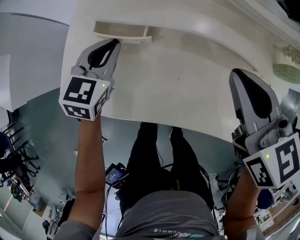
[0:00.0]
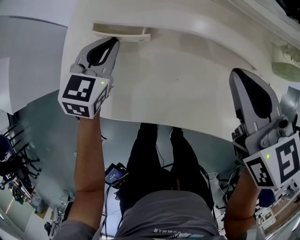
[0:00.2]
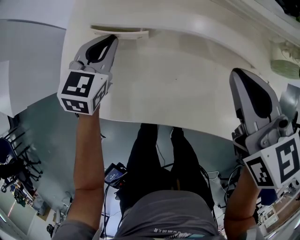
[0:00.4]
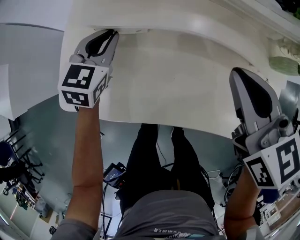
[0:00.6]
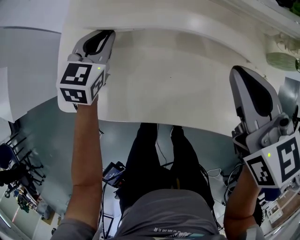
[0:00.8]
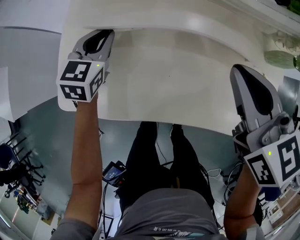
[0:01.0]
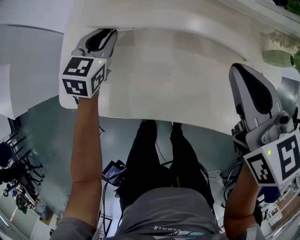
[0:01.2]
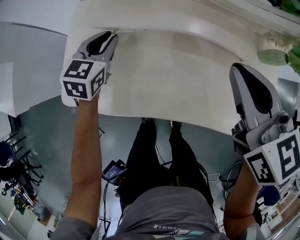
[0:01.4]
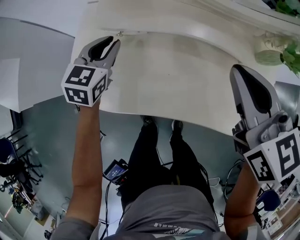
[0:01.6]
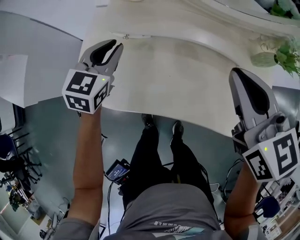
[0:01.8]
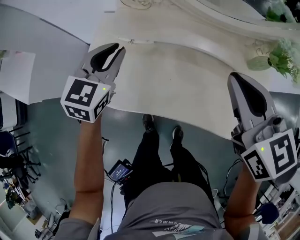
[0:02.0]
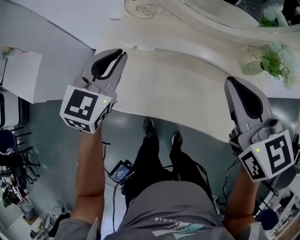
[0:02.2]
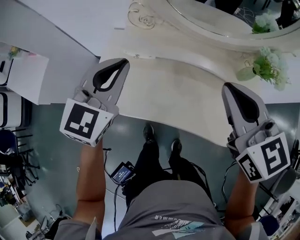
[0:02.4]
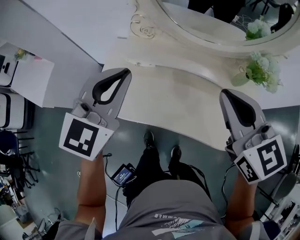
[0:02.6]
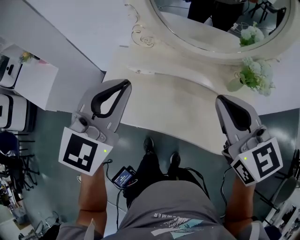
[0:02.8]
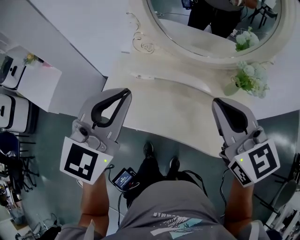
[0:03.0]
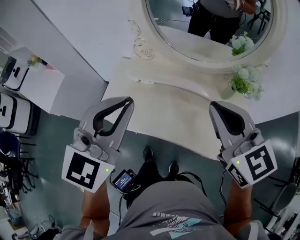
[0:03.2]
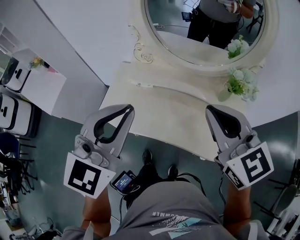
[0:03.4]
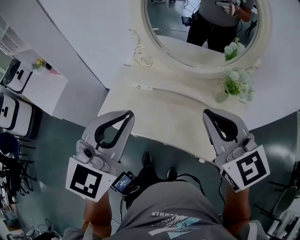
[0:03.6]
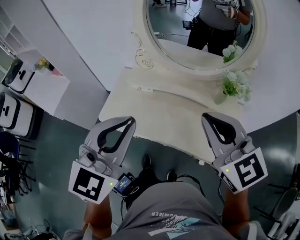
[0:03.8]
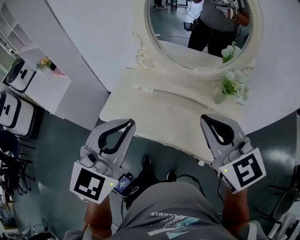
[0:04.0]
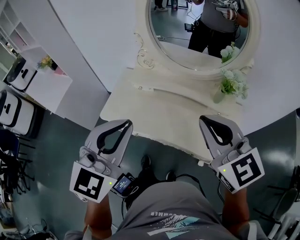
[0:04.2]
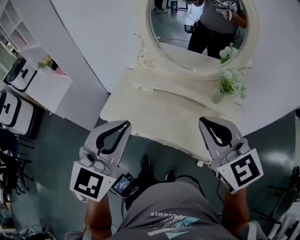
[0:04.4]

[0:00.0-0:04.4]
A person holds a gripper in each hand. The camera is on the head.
0.0 to 1.4 s: The right gripper shifts by approximately 5 cm.
1.4 to 3.0 s: The right gripper is displaced upward and backward by approximately 25 cm, while the left gripper heads upward and backward, covering approximately 50 cm, and changes its angle by about 30 degrees.
3.0 to 4.4 s: The grippers both shift backward by about 15 cm.

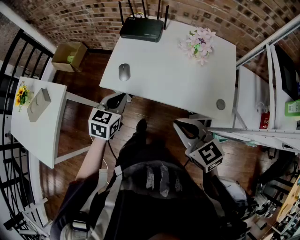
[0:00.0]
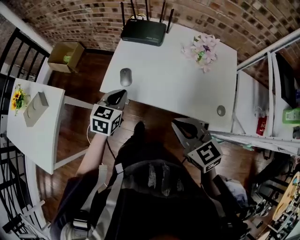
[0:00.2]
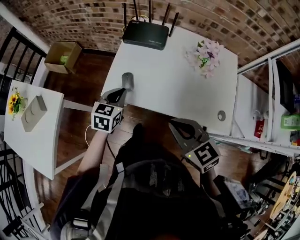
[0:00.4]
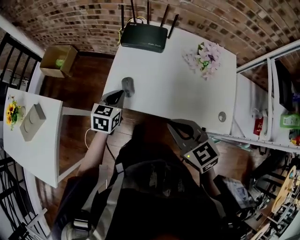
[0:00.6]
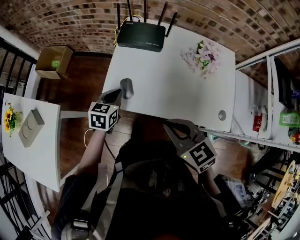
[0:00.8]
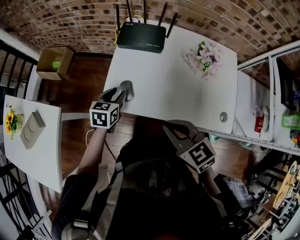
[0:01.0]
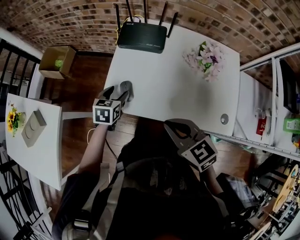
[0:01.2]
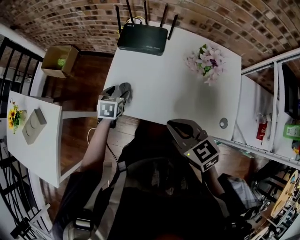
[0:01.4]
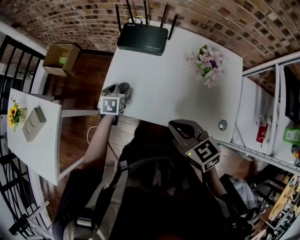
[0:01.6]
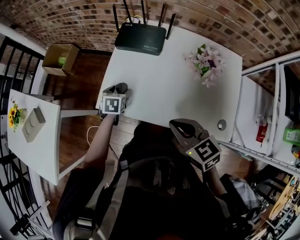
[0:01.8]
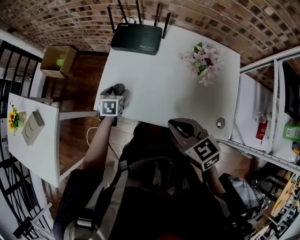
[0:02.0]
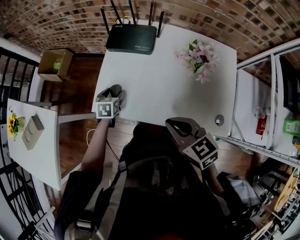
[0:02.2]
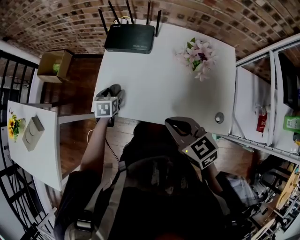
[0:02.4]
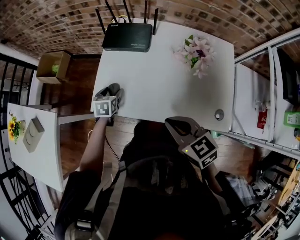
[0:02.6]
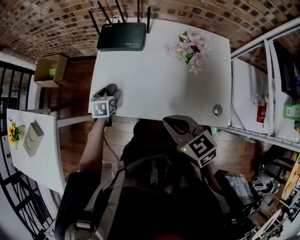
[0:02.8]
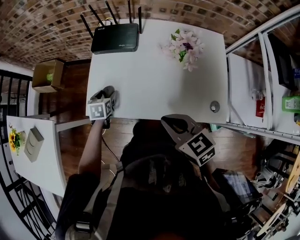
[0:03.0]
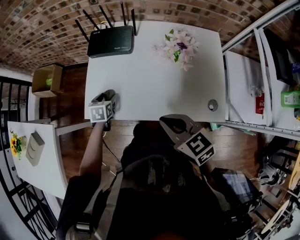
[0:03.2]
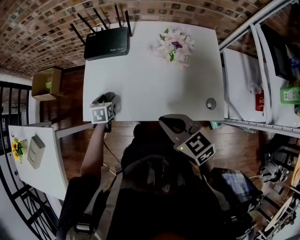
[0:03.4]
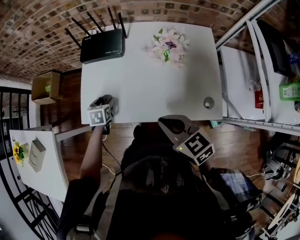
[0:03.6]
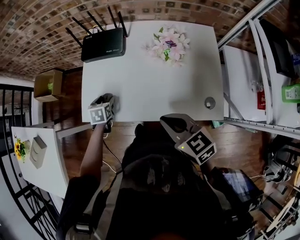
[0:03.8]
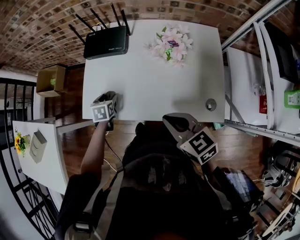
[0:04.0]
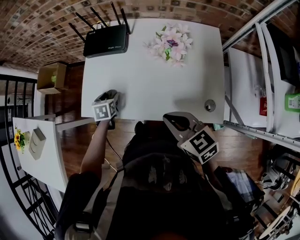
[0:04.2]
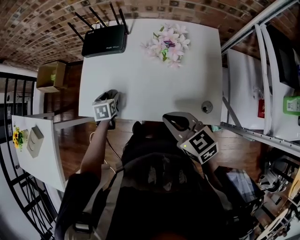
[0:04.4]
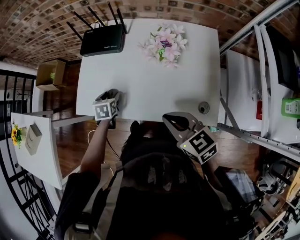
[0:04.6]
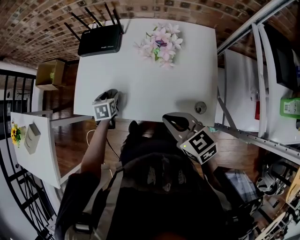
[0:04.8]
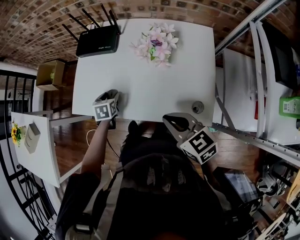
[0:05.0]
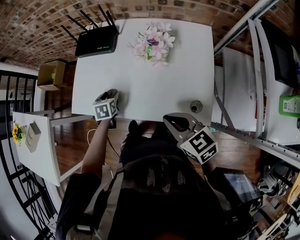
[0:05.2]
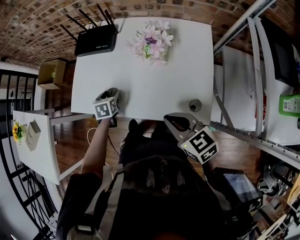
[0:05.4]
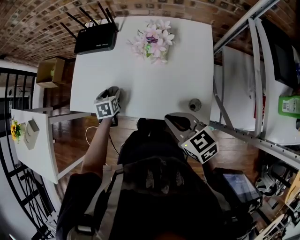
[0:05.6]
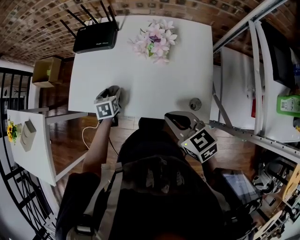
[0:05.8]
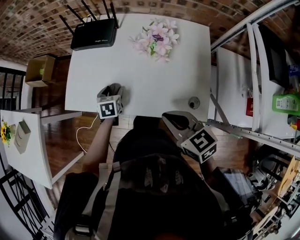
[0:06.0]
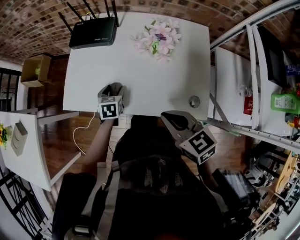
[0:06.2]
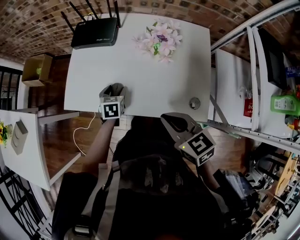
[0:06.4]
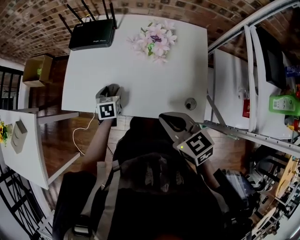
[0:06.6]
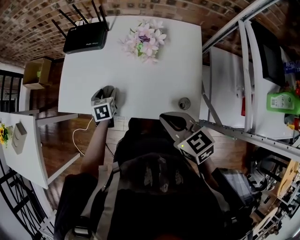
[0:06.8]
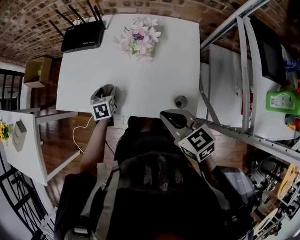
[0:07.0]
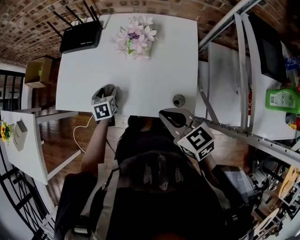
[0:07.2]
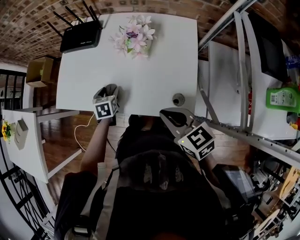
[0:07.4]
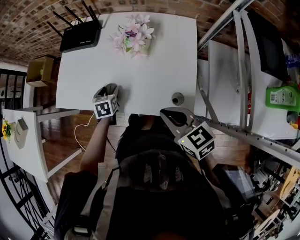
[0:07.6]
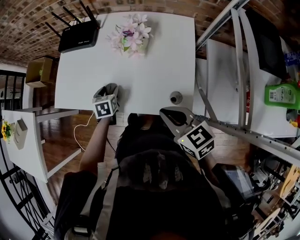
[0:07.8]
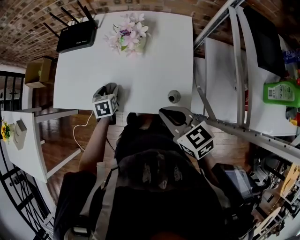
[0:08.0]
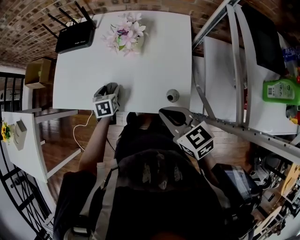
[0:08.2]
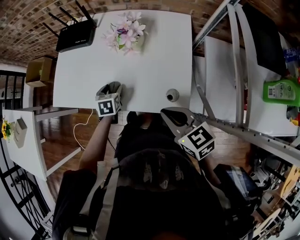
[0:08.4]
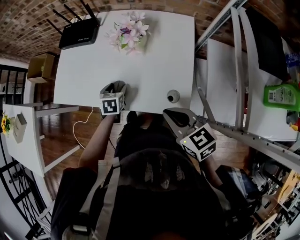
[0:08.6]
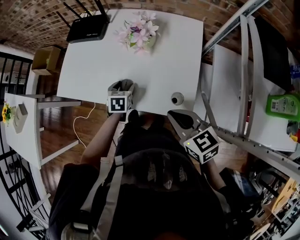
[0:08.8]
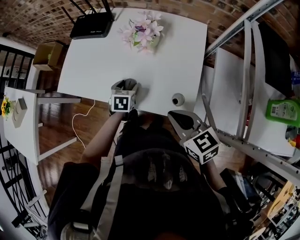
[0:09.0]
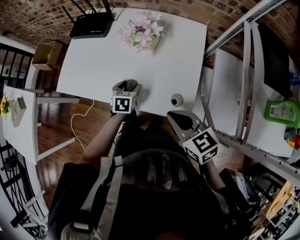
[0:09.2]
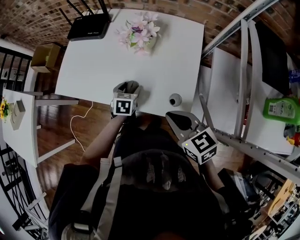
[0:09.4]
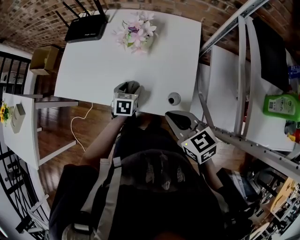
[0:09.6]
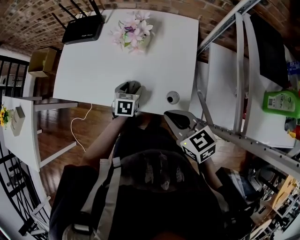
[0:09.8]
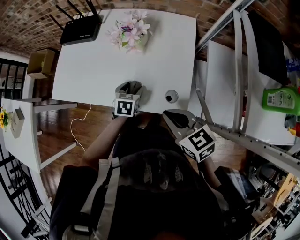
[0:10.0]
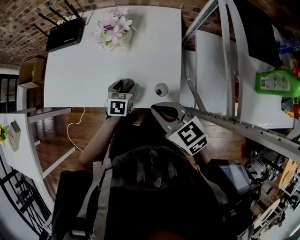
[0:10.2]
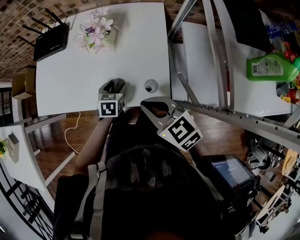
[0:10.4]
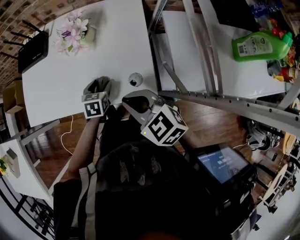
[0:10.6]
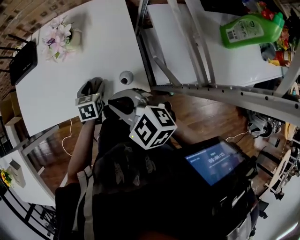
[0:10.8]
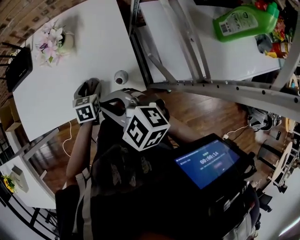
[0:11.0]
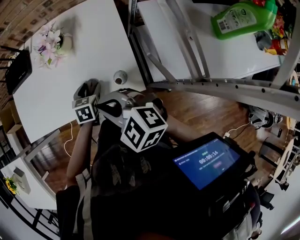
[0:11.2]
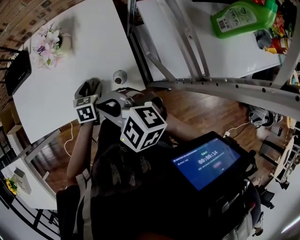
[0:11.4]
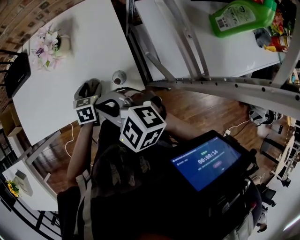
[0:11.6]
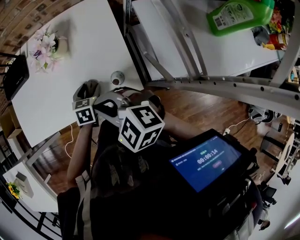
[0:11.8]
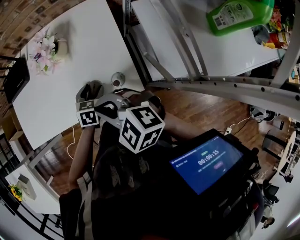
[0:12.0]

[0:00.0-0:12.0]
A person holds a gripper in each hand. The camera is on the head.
0.0 to 1.6 s: The left gripper shifts some 25 cm forward and downward, turns by about 20 degrees, and opens its fingers; the right gripper goes about 15 cm forward.
1.6 to 3.0 s: The grippers make only small movements.
3.0 to 4.4 s: Both grippers move to the right, roughly 10 cm.
4.4 to 6.0 s: The left gripper is displaced to the right by some 5 cm.
6.0 to 7.6 s: The two grippers go approximately 10 cm to the right.
7.6 to 9.0 s: The left gripper goes approximately 5 cm to the right.
9.0 to 10.4 s: The left gripper travels to the right by roughly 10 cm.

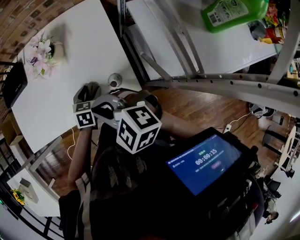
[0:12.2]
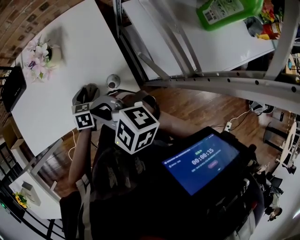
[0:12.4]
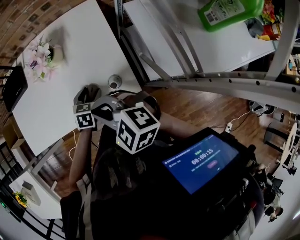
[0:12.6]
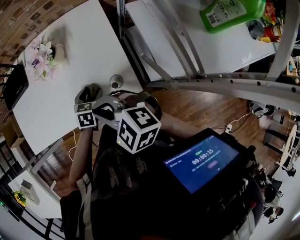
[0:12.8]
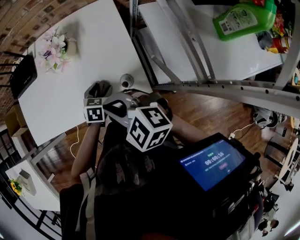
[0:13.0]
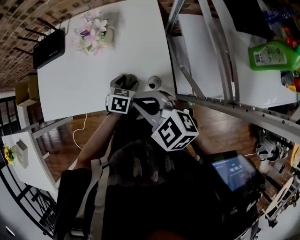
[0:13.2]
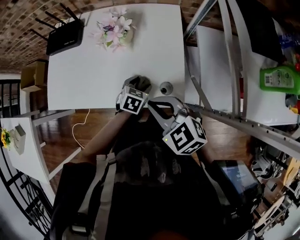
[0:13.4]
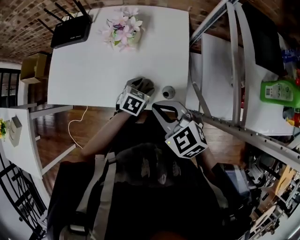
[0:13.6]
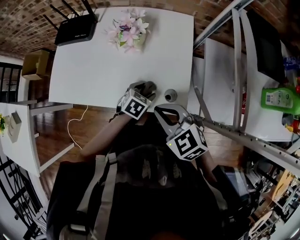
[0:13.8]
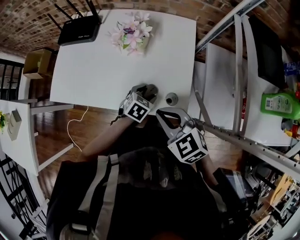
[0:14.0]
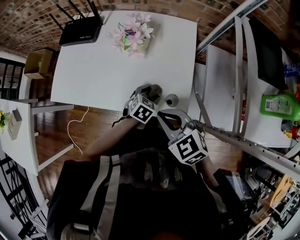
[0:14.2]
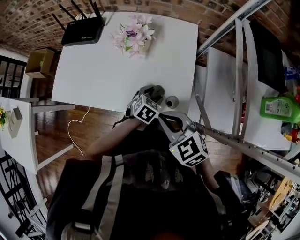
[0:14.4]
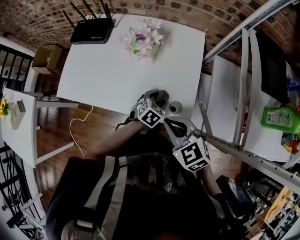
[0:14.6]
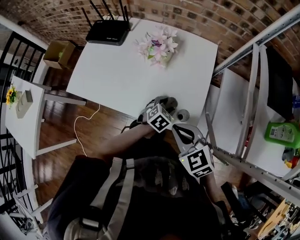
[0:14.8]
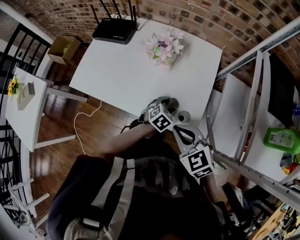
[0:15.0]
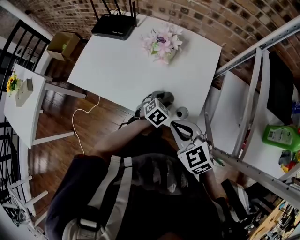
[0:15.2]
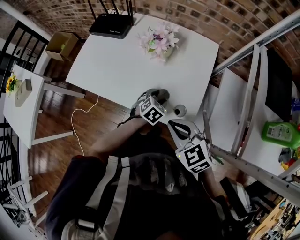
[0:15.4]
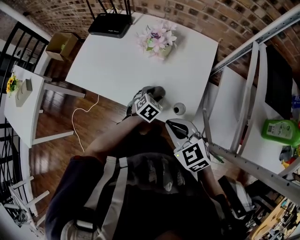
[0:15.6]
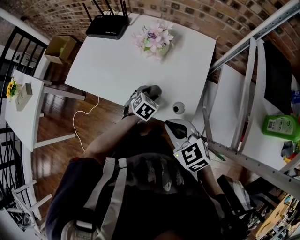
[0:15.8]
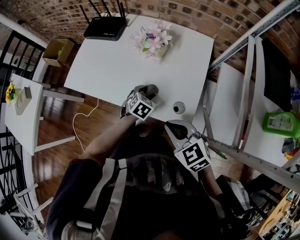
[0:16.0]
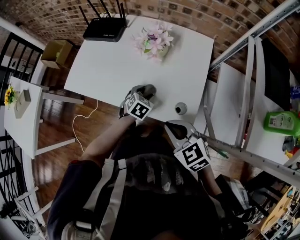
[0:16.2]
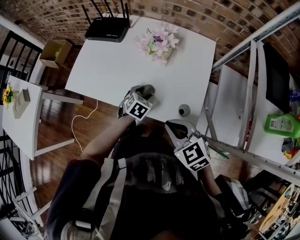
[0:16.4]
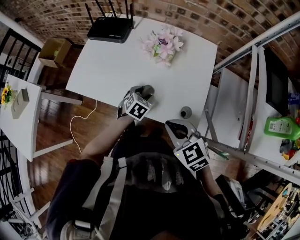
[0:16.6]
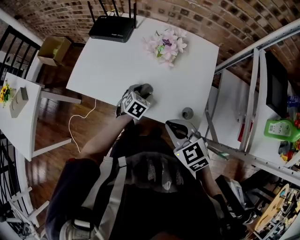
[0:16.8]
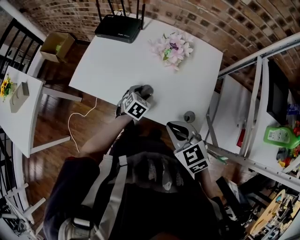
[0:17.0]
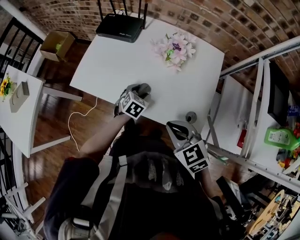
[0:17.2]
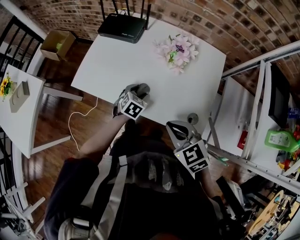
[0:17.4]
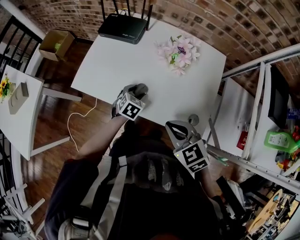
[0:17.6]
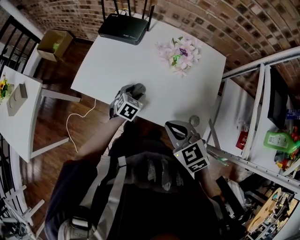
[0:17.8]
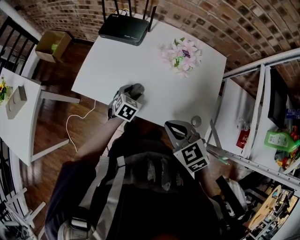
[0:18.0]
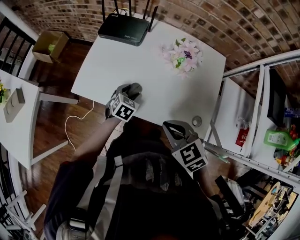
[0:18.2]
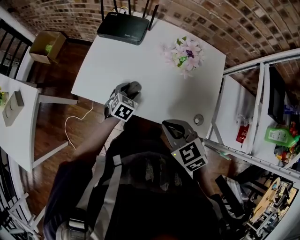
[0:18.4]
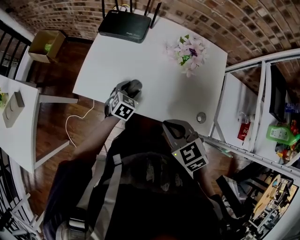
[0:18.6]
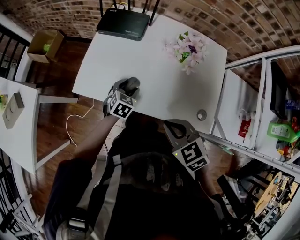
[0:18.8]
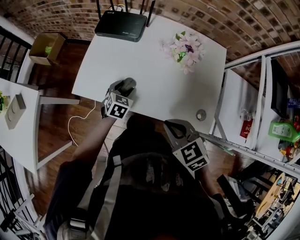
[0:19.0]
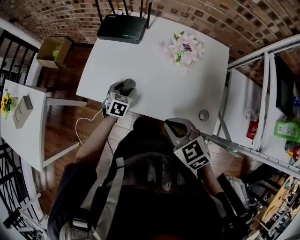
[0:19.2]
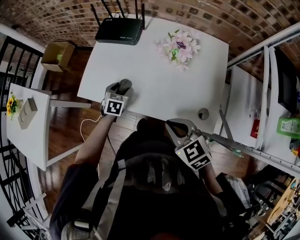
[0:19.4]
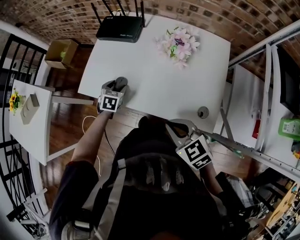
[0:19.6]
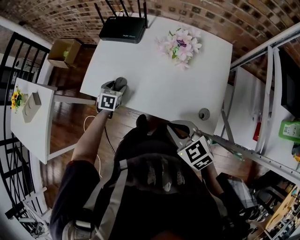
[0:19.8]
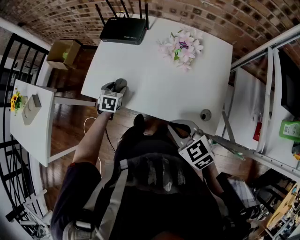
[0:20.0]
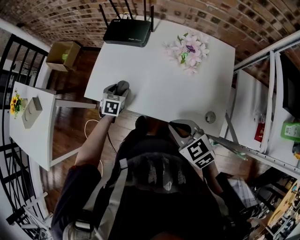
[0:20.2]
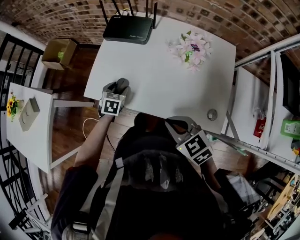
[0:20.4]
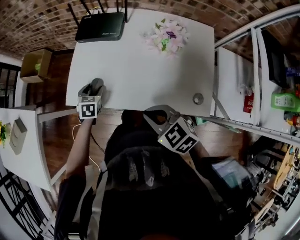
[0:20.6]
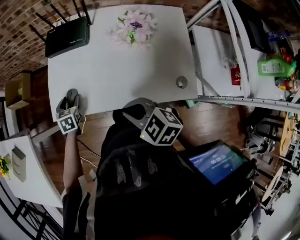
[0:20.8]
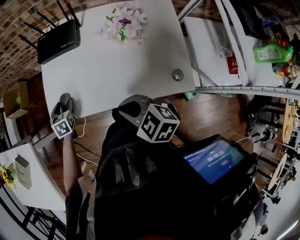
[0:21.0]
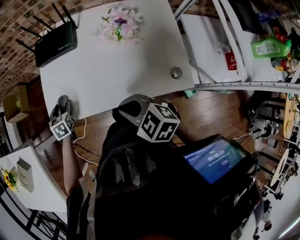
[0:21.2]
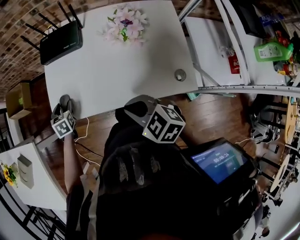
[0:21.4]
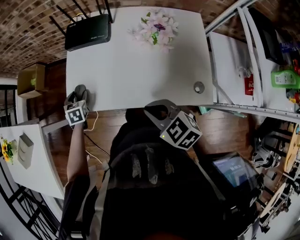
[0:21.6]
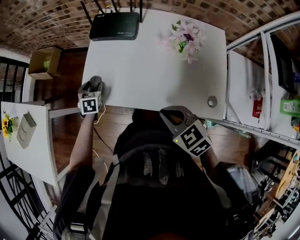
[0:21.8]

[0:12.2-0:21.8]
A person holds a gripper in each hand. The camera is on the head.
12.2 to 15.4 s: The grippers move only a little.
15.4 to 17.0 s: The right gripper heads to the left, covering some 10 cm; the left gripper goes about 15 cm to the left and forward.
17.0 to 18.6 s: The right gripper goes roughly 10 cm to the left. Meanwhile the left gripper shifts roughly 15 cm to the left and forward.
18.6 to 20.2 s: The left gripper moves to the left, some 10 cm.
20.2 to 21.8 s: The right gripper changes place by approximately 5 cm. The left gripper is displaced to the left and forward by approximately 10 cm.
